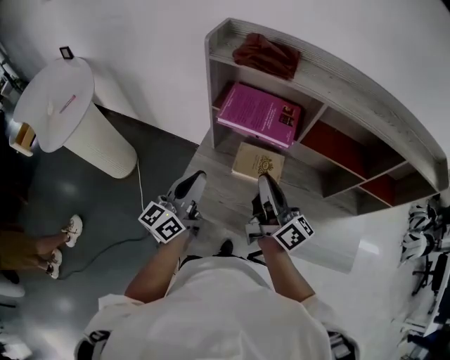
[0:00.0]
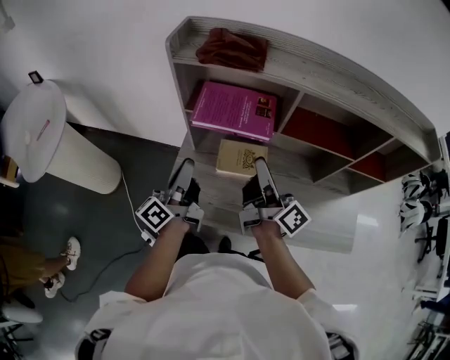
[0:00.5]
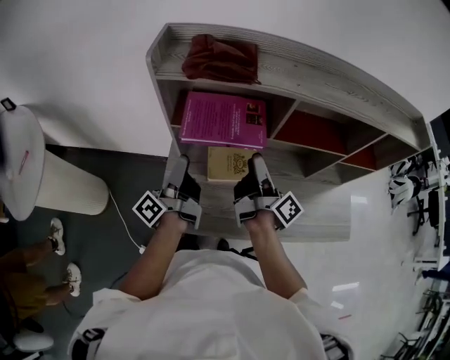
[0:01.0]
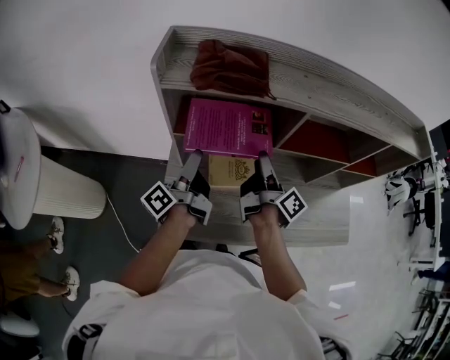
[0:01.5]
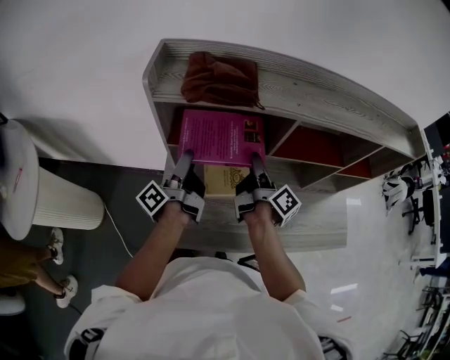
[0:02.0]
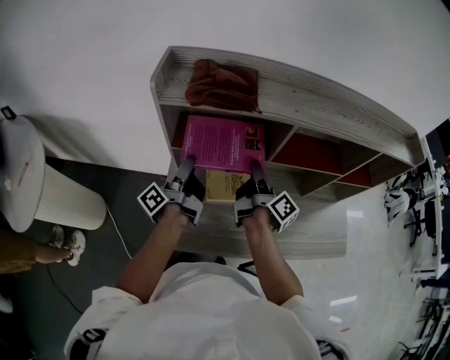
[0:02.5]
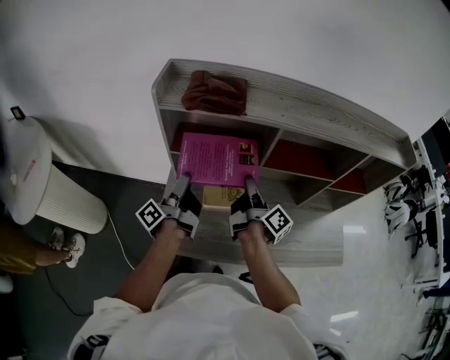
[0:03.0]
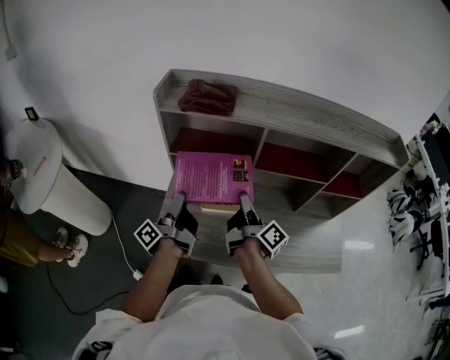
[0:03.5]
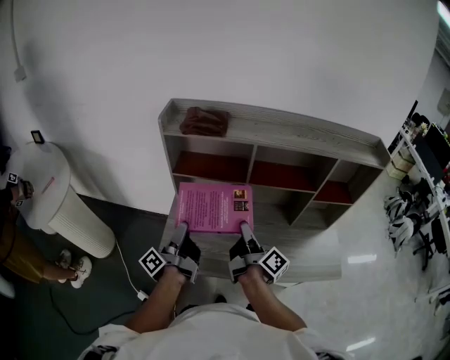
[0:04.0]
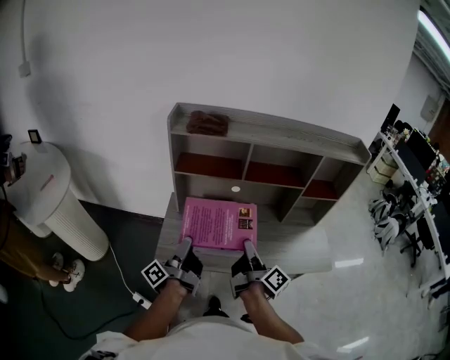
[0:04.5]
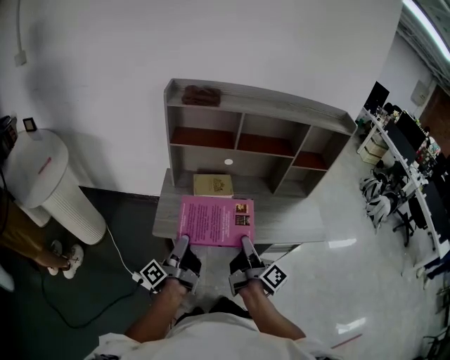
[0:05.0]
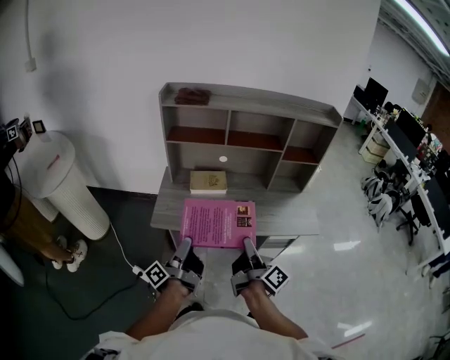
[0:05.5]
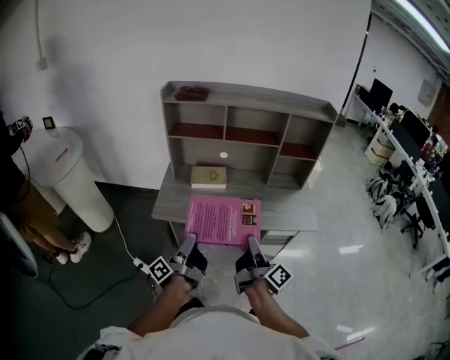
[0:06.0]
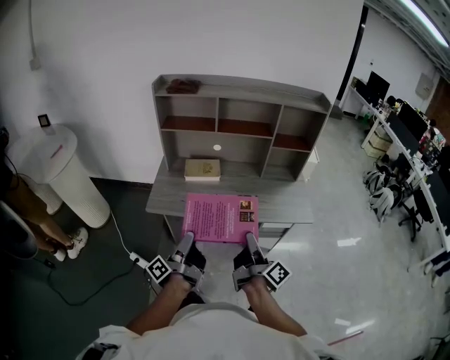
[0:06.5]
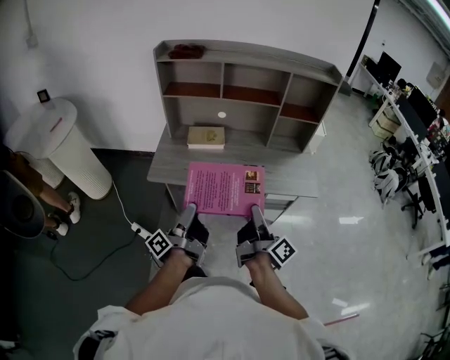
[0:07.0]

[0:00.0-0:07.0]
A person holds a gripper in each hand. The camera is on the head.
0:00.0 to 0:02.0: The right gripper travels forward and downward by about 15 cm, swivels about 40 degrees, and opens. Meanwhile the left gripper travels forward by roughly 20 cm, rotates around the line of its fingers by roughly 60 degrees, counterclockwise from behind, and opens up.
0:02.0 to 0:03.5: Both grippers travel together backward, some 10 cm. The left gripper closes its fingers. Meanwhile the right gripper closes.
0:03.5 to 0:05.0: Both grippers move backward, about 30 cm.
0:05.0 to 0:07.0: The grippers both shift to the right and backward by roughly 20 cm.

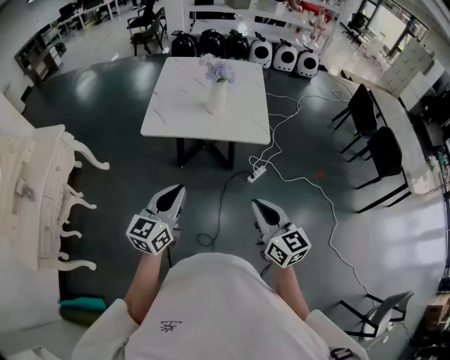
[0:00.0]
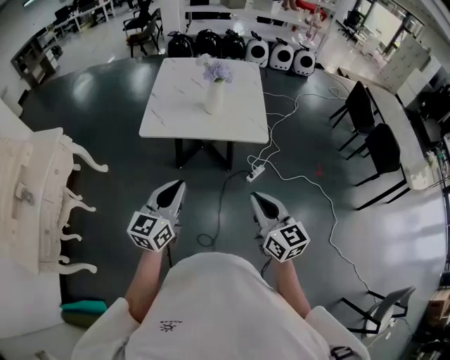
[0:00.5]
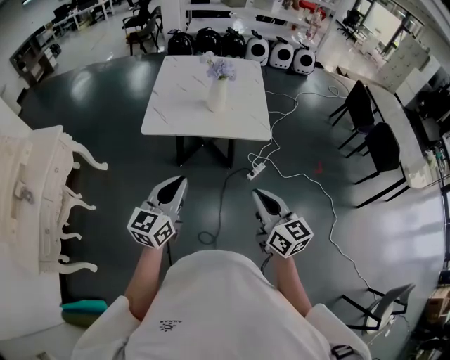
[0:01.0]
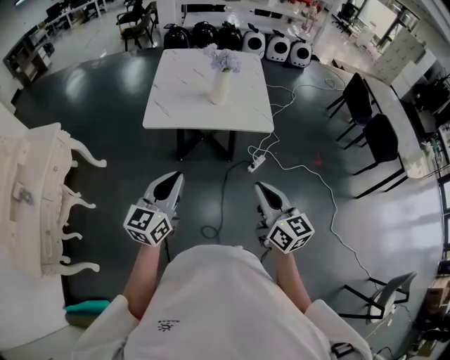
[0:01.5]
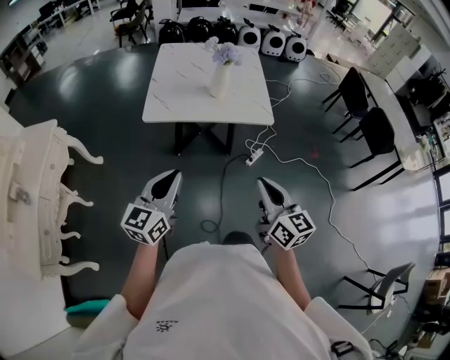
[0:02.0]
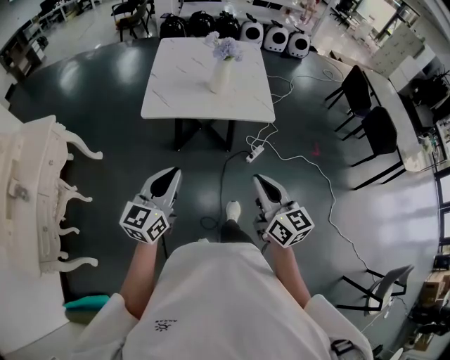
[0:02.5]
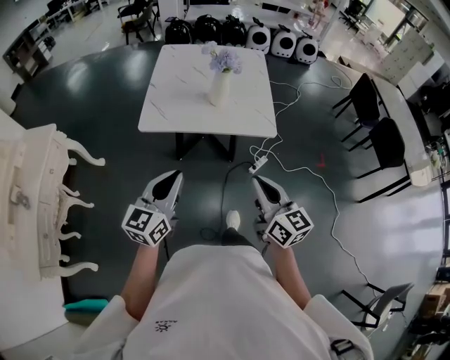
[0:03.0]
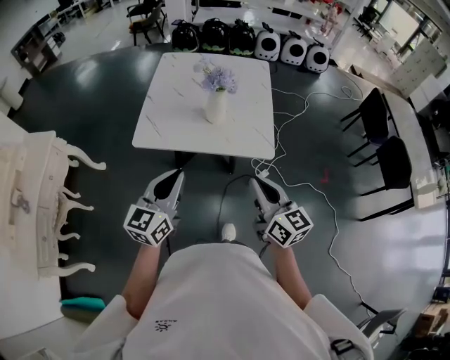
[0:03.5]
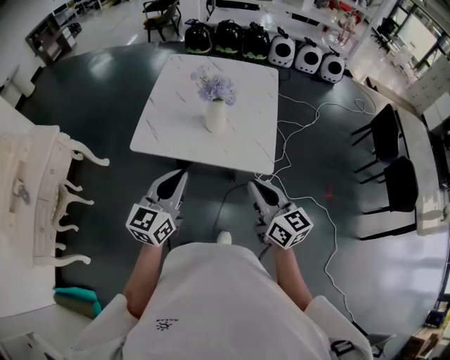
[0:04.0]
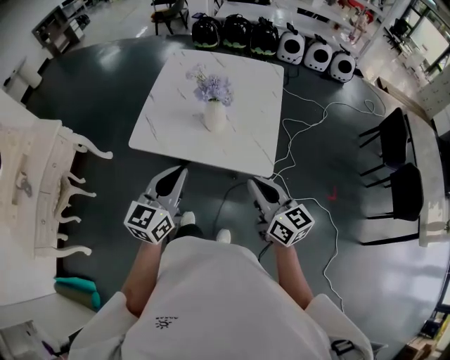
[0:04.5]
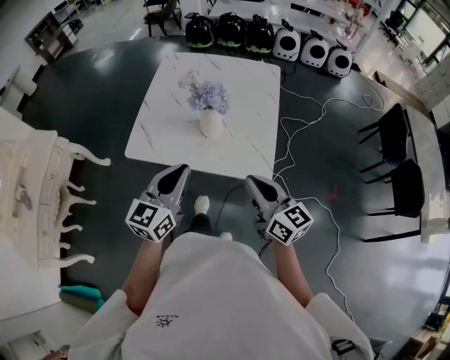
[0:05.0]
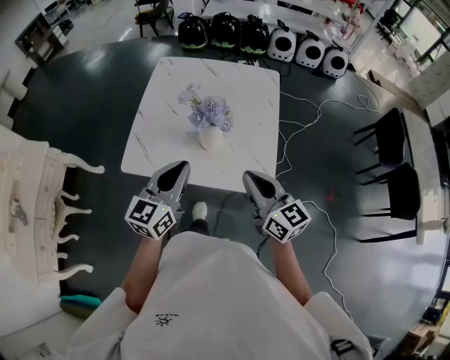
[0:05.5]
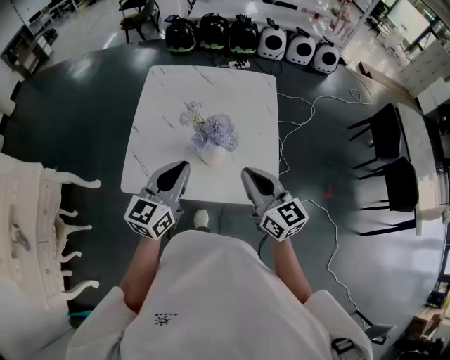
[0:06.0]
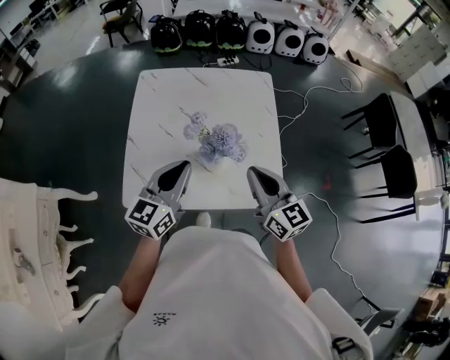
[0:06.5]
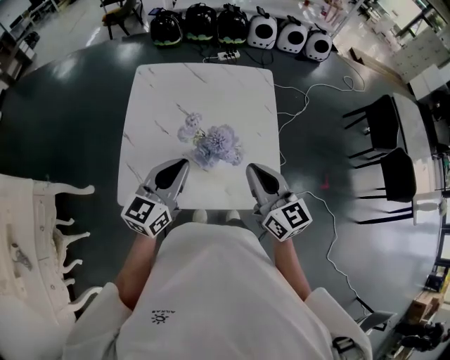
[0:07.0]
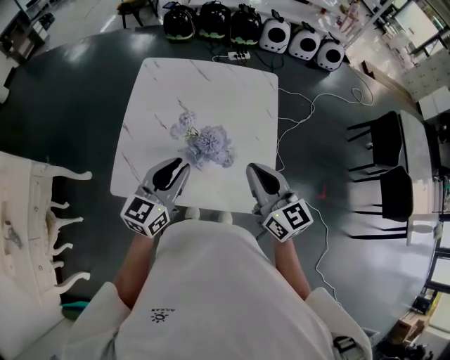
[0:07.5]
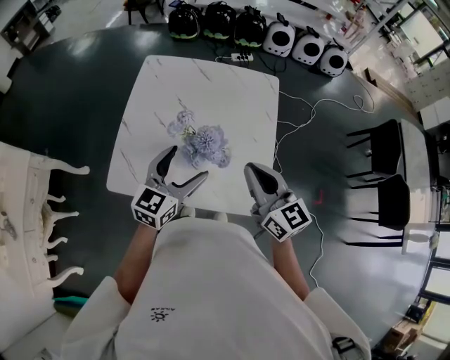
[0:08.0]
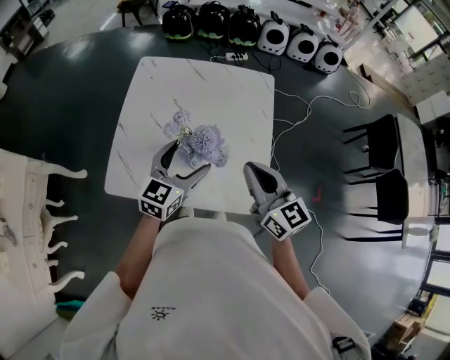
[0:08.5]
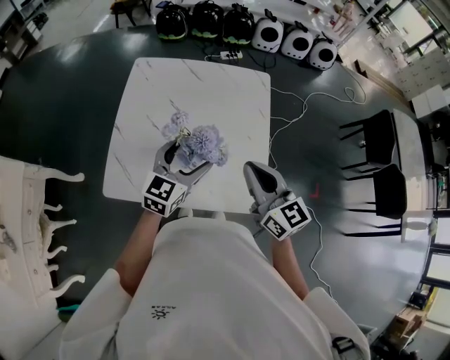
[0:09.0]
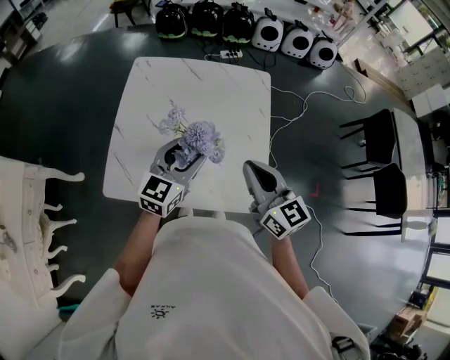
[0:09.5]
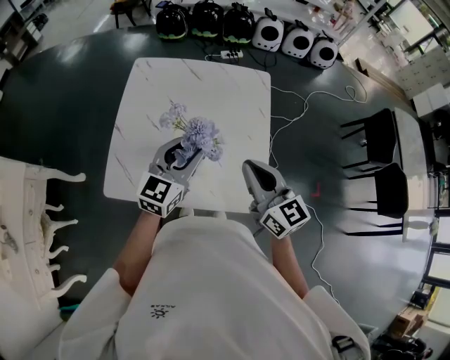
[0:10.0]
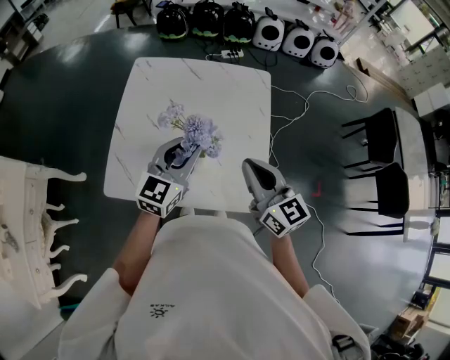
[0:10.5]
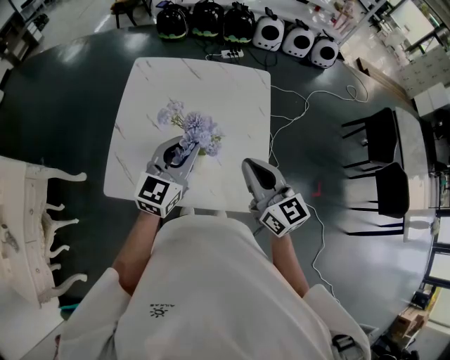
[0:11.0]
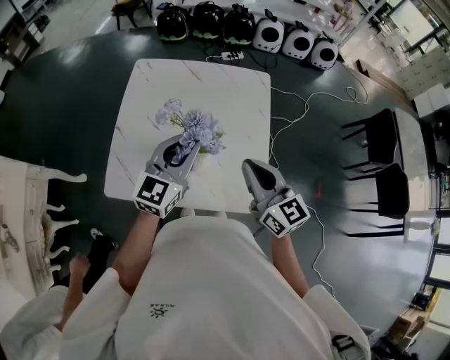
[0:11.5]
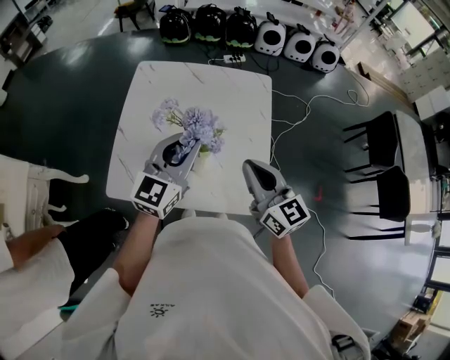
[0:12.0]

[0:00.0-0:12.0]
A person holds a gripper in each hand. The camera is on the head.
0:00.0 to 0:02.0: Both grippers move to the left, about 10 cm.
0:02.0 to 0:04.0: The two grippers go approximately 30 cm forward and to the right.
0:04.0 to 0:06.0: Both grippers travel together forward, about 20 cm.
0:06.0 to 0:08.0: The left gripper goes approximately 10 cm forward and downward, and opens. The right gripper is displaced forward by approximately 5 cm.
0:08.0 to 0:10.0: The left gripper ends up about 5 cm from where it was, and closes its fingers.
0:10.0 to 0:12.0: The left gripper shifts some 5 cm upward.

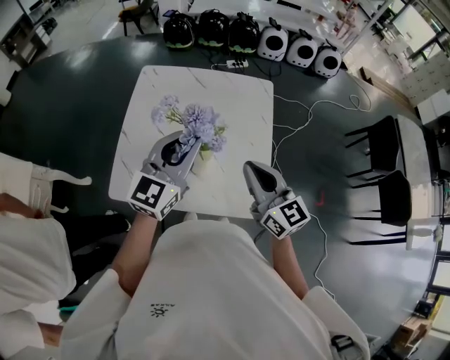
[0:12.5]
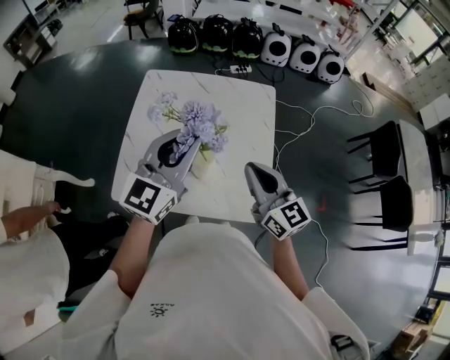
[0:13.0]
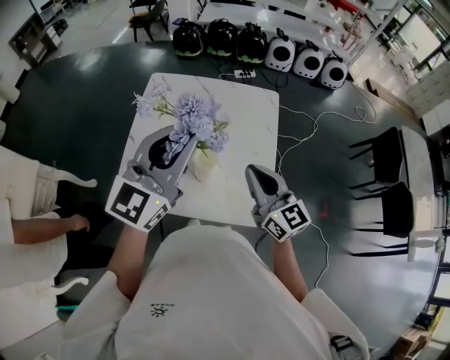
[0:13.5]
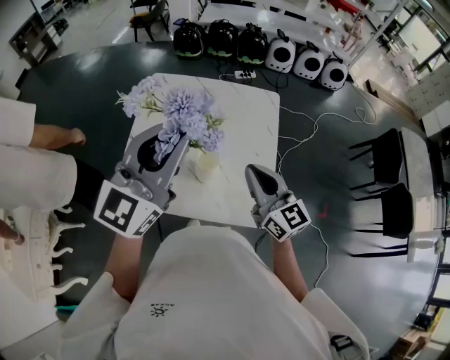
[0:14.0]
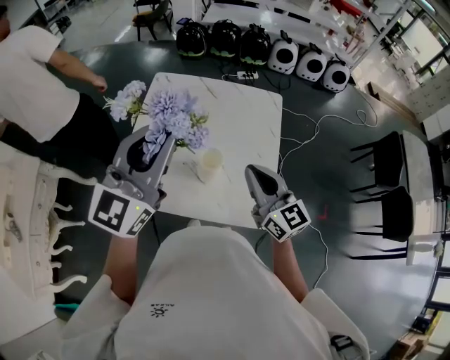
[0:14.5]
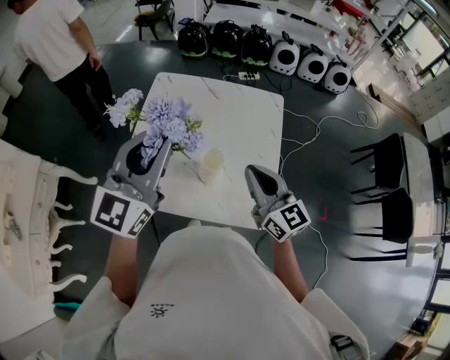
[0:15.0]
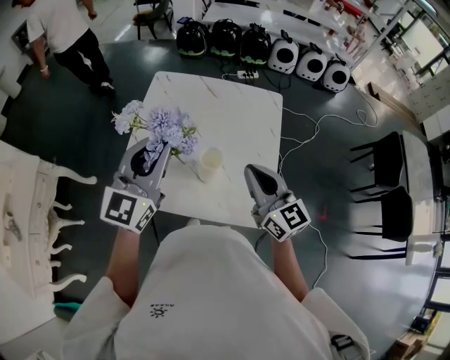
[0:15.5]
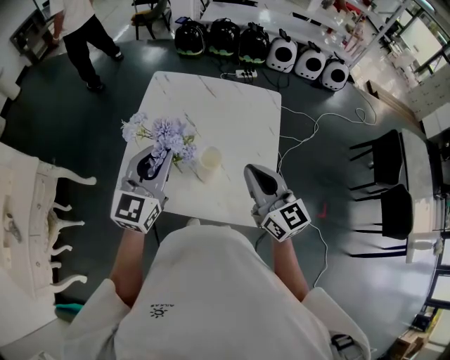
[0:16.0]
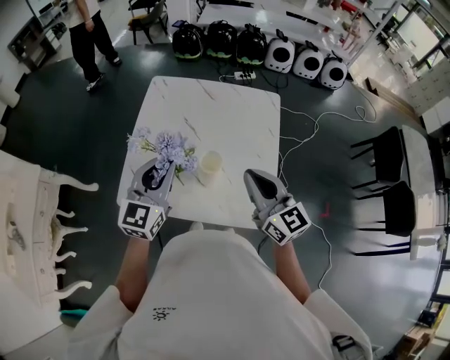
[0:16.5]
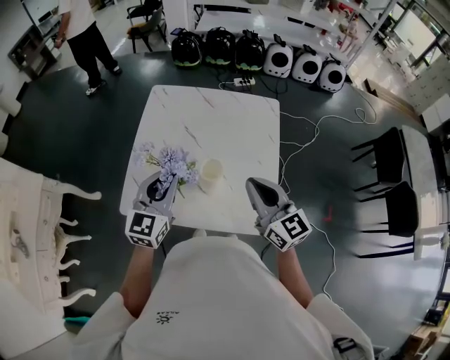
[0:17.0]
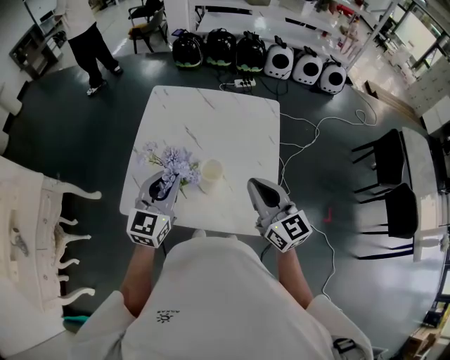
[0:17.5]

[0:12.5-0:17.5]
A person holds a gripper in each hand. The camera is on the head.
0:12.5 to 0:15.0: The left gripper is displaced upward and to the left by some 15 cm.
0:15.0 to 0:17.5: The left gripper goes about 15 cm downward.

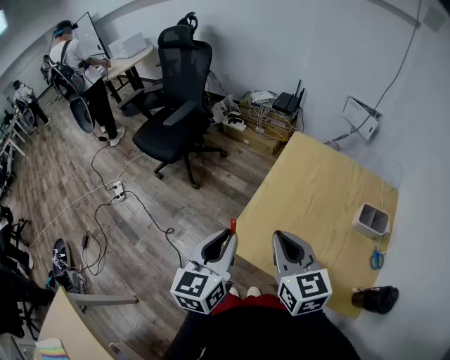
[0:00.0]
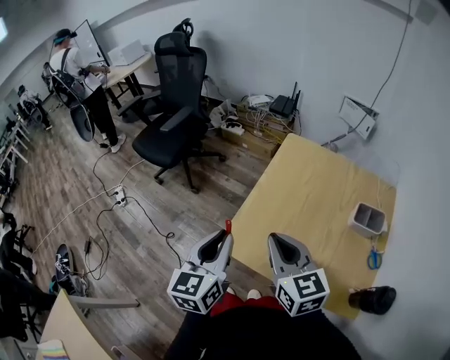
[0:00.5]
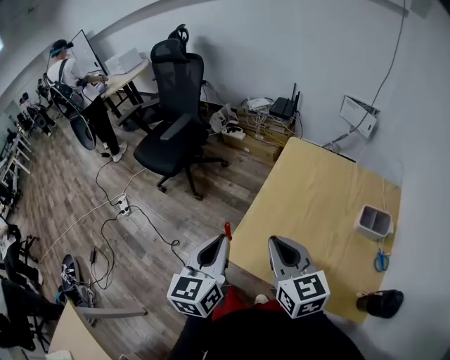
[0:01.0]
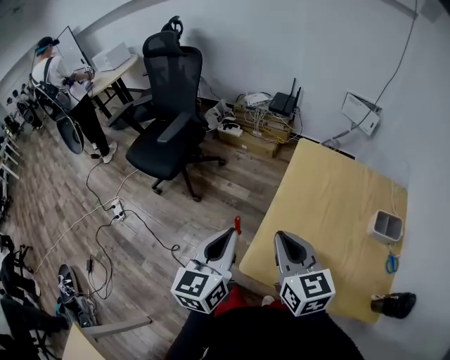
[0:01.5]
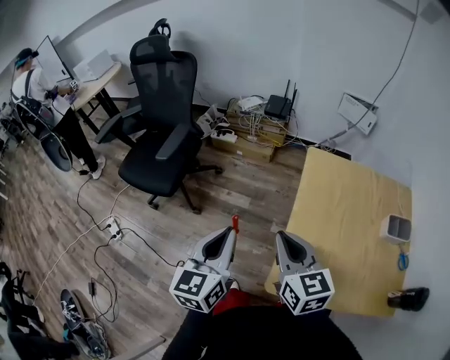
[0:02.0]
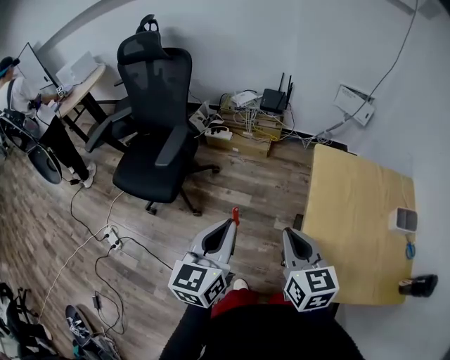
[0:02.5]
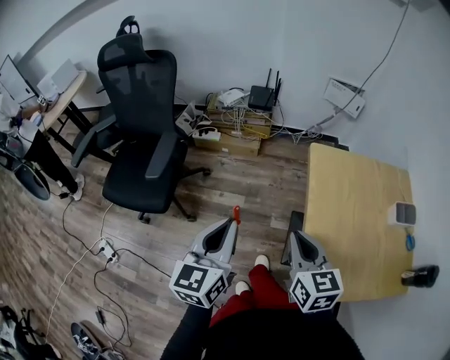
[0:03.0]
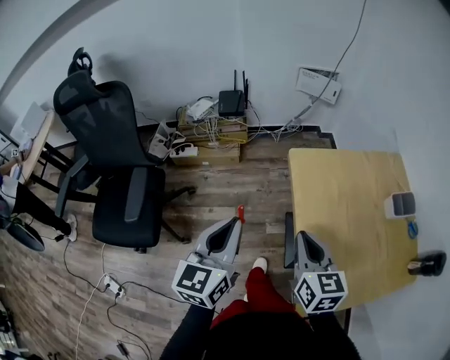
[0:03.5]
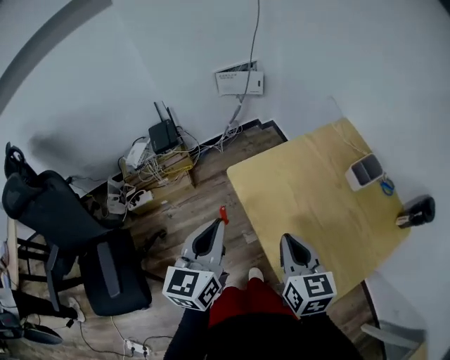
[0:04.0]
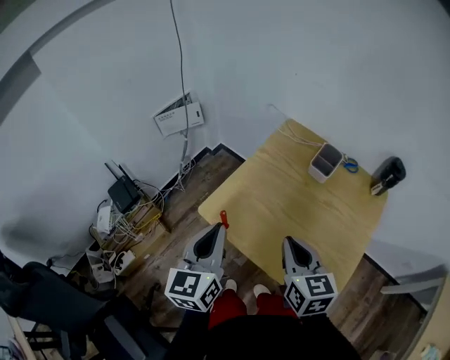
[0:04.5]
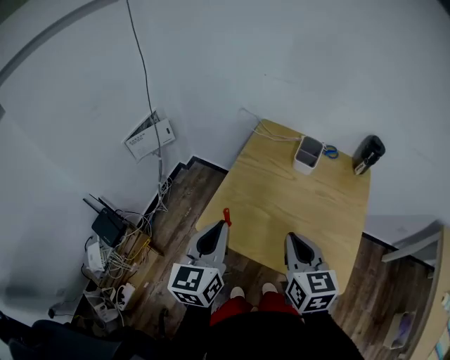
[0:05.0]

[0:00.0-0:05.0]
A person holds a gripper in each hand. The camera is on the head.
0:00.0 to 0:02.5: The grippers both shift forward and to the left by roughly 25 cm. The right gripper rotates roughly 20 degrees.
0:02.5 to 0:05.0: The right gripper changes place by approximately 20 cm, and rotates about 80 degrees. Meanwhile the left gripper shifts by about 40 cm, and rotates about 80 degrees.
